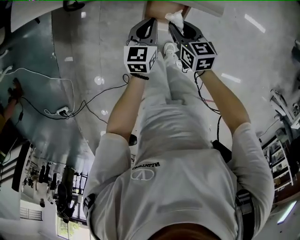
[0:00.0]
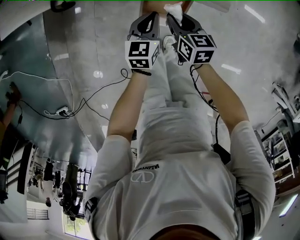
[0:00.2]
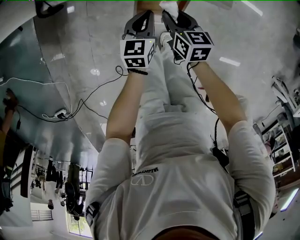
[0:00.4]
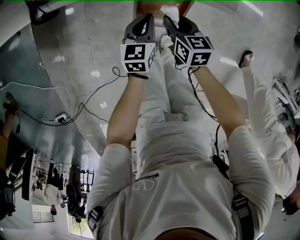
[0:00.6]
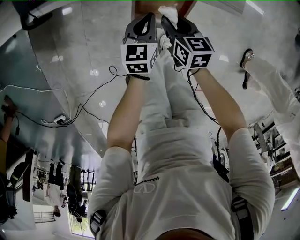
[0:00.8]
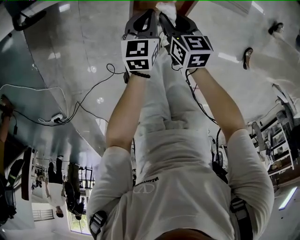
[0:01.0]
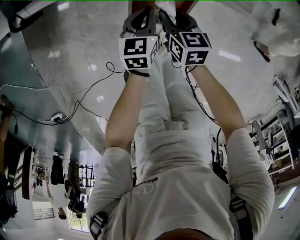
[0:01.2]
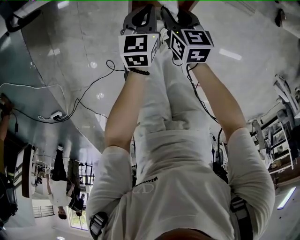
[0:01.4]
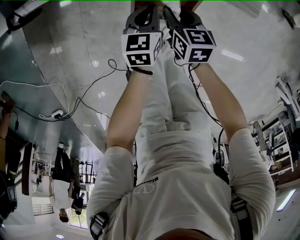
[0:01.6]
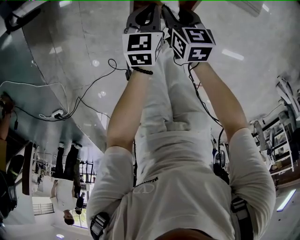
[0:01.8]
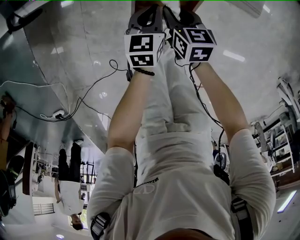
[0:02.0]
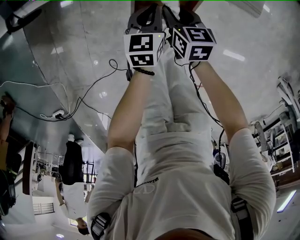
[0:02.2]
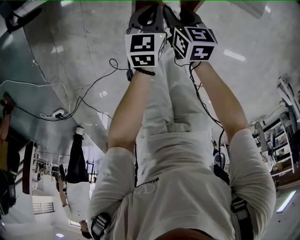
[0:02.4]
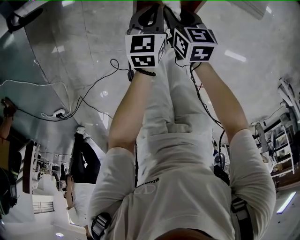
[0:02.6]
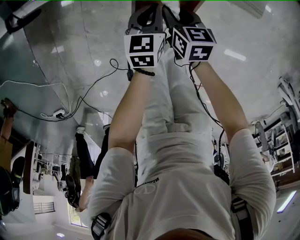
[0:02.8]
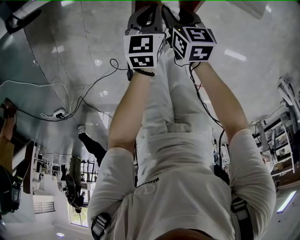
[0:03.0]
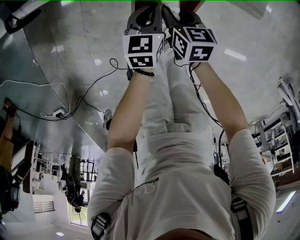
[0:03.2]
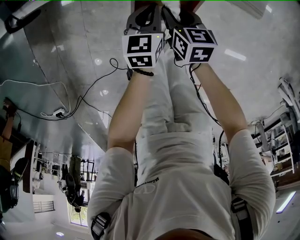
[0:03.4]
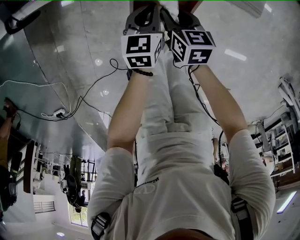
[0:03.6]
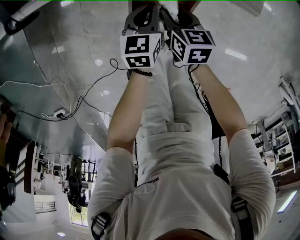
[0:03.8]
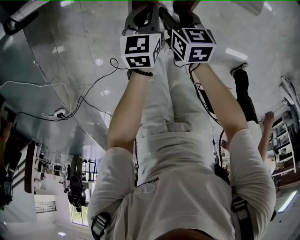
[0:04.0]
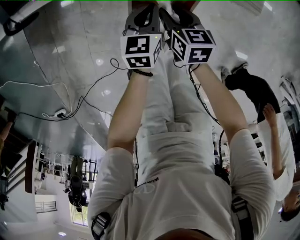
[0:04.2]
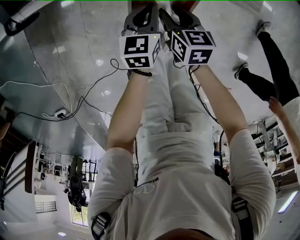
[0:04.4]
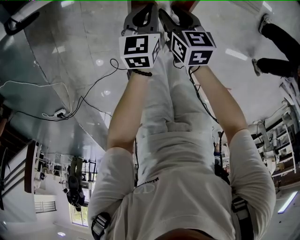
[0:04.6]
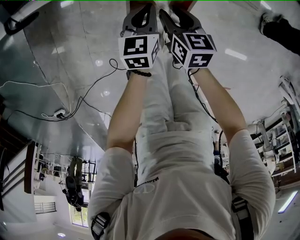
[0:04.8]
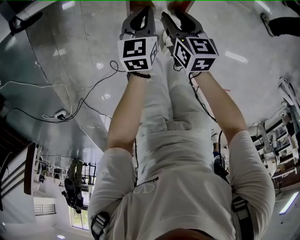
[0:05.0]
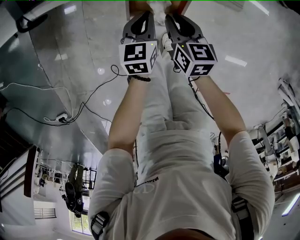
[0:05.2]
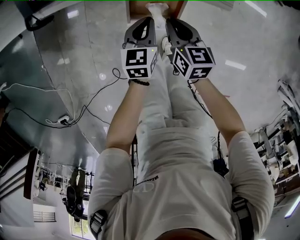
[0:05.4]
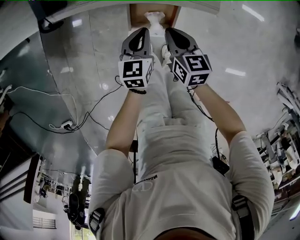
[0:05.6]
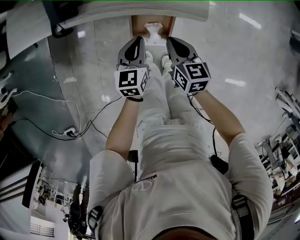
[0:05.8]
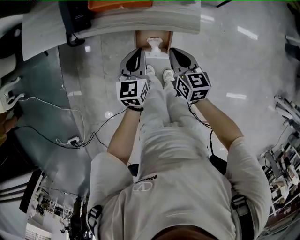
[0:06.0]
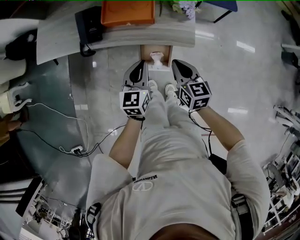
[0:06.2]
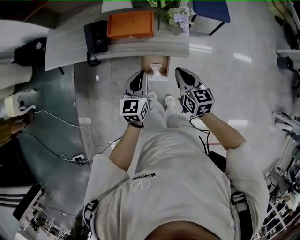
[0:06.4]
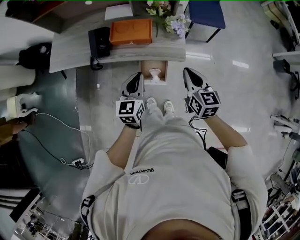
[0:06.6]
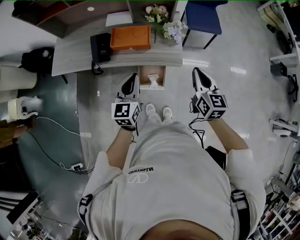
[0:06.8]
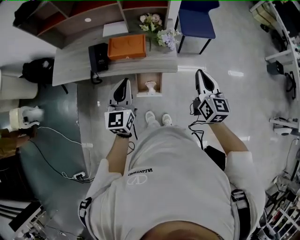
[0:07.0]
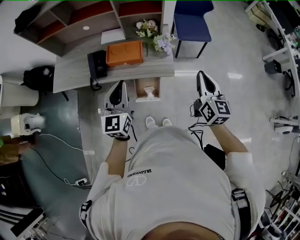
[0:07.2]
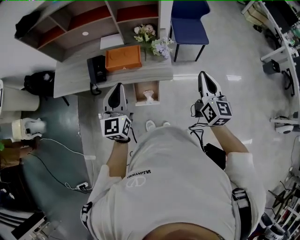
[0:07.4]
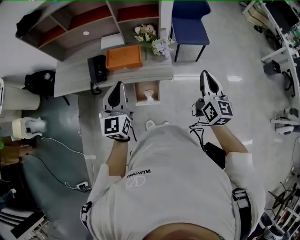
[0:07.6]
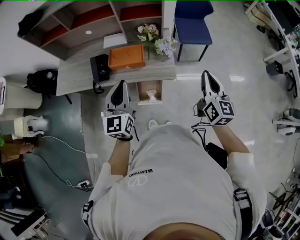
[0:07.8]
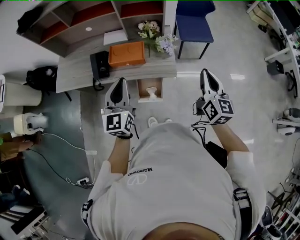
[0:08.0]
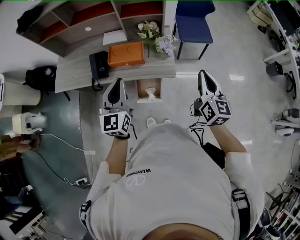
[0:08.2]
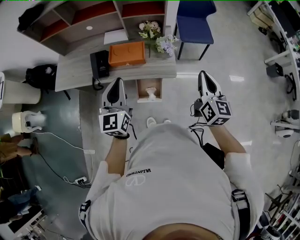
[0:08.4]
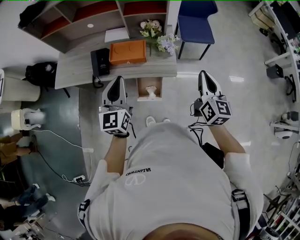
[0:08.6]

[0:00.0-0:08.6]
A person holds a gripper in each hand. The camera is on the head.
0:00.0 to 0:01.4: The grippers both shift downward by about 20 cm.
0:01.4 to 0:04.4: The grippers stay close to where they were, moving slightly.
0:04.4 to 0:05.8: The grippers both shift upward by approximately 20 cm. The right gripper closes.
0:05.8 to 0:07.2: The left gripper travels upward by about 40 cm, and swivels approximately 30 degrees, while the right gripper is displaced upward and to the right by roughly 40 cm, and rotates approximately 40 degrees.
0:07.2 to 0:08.6: The grippers make only small movements.

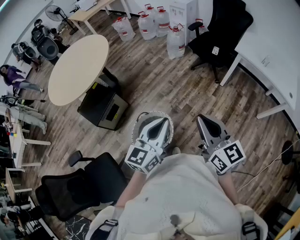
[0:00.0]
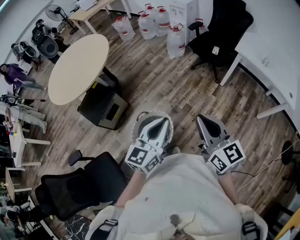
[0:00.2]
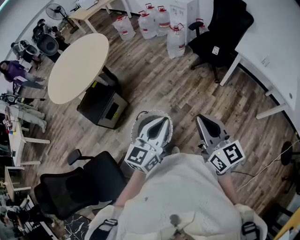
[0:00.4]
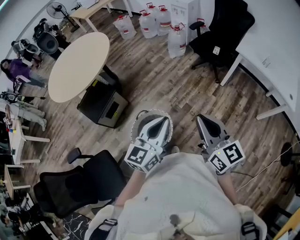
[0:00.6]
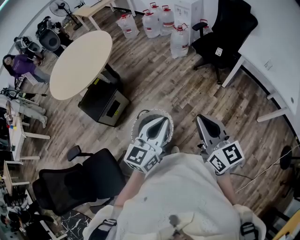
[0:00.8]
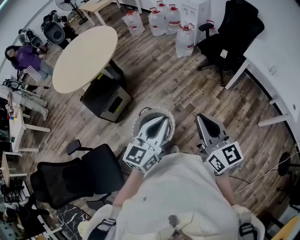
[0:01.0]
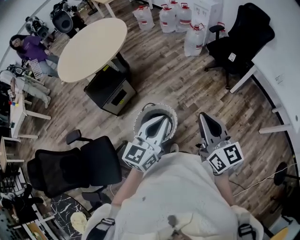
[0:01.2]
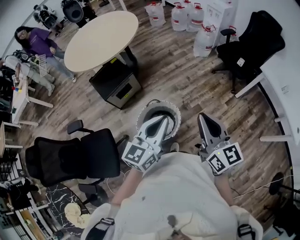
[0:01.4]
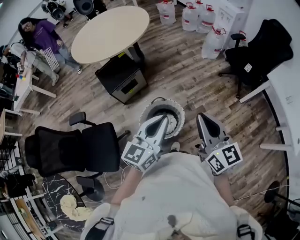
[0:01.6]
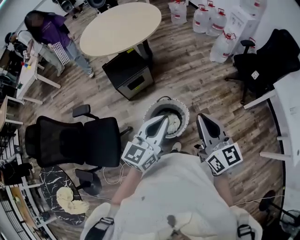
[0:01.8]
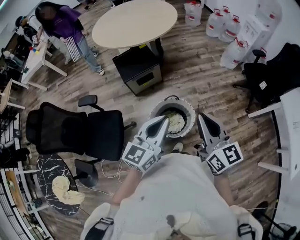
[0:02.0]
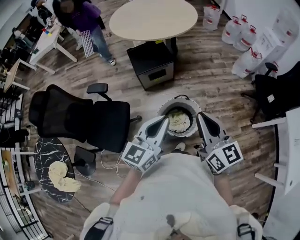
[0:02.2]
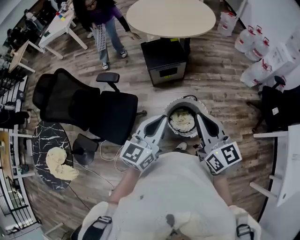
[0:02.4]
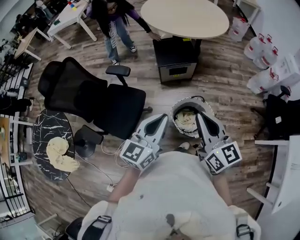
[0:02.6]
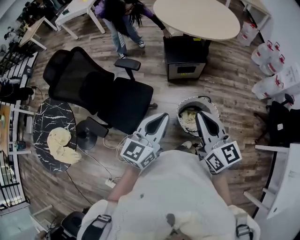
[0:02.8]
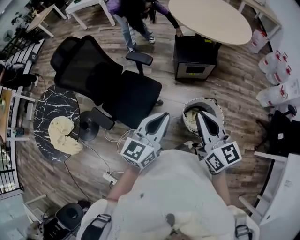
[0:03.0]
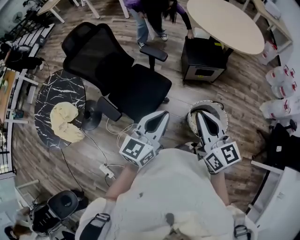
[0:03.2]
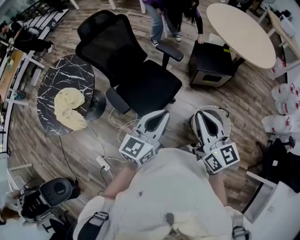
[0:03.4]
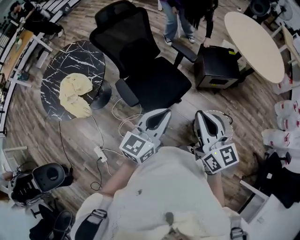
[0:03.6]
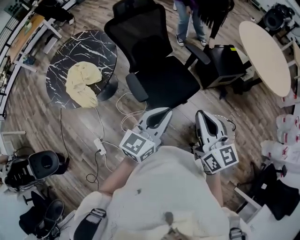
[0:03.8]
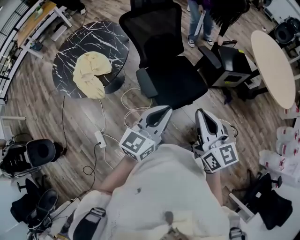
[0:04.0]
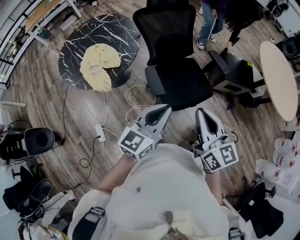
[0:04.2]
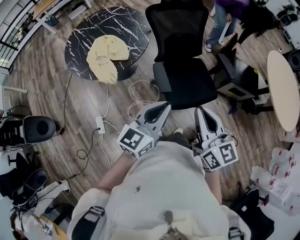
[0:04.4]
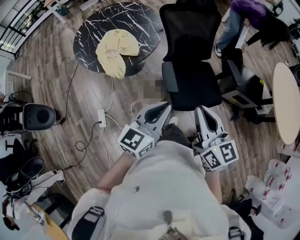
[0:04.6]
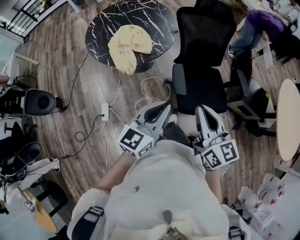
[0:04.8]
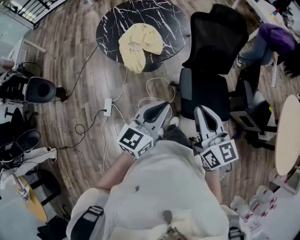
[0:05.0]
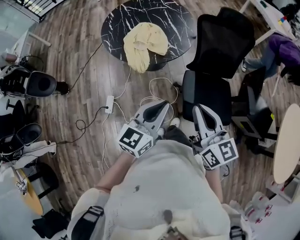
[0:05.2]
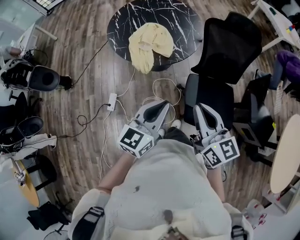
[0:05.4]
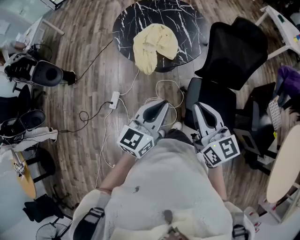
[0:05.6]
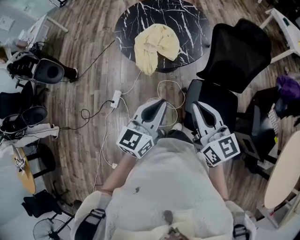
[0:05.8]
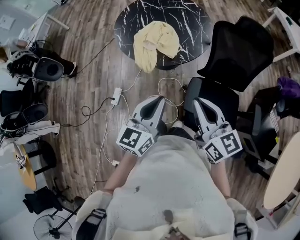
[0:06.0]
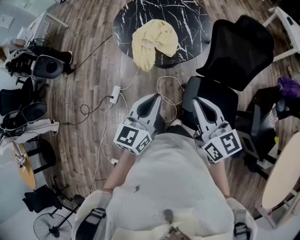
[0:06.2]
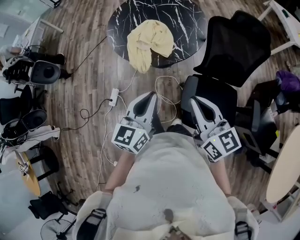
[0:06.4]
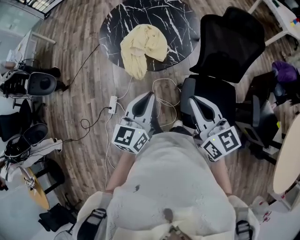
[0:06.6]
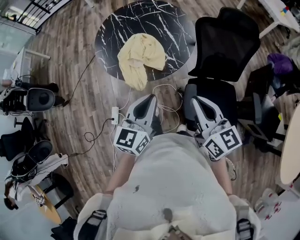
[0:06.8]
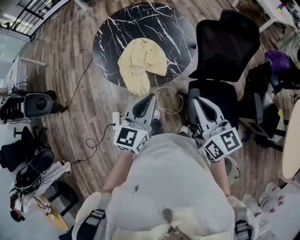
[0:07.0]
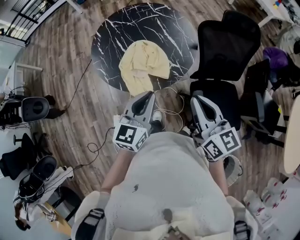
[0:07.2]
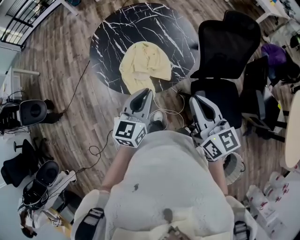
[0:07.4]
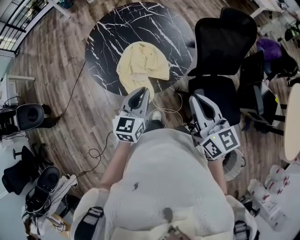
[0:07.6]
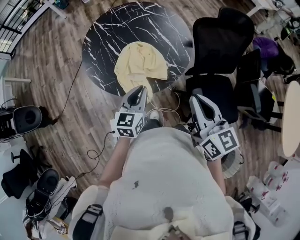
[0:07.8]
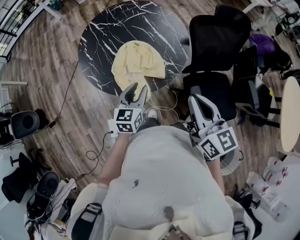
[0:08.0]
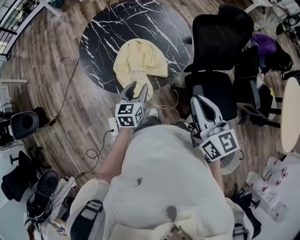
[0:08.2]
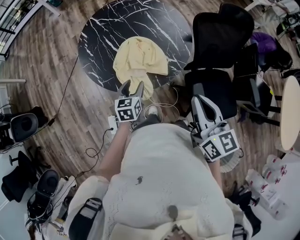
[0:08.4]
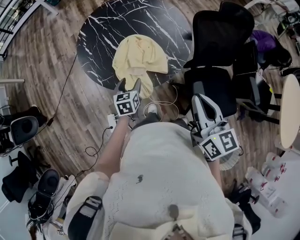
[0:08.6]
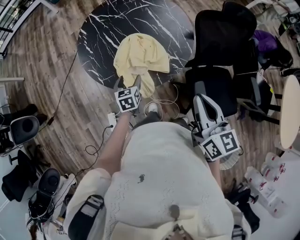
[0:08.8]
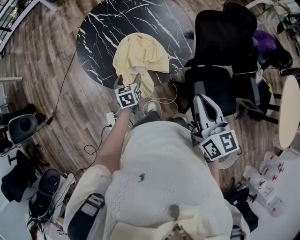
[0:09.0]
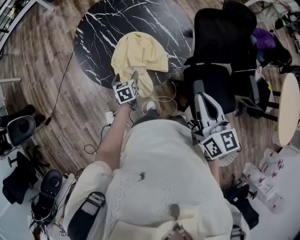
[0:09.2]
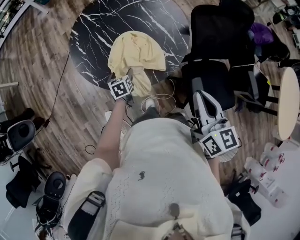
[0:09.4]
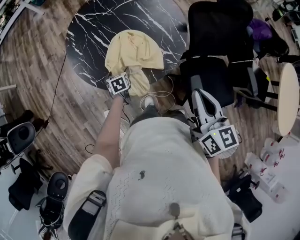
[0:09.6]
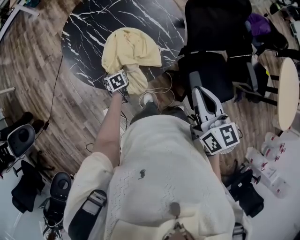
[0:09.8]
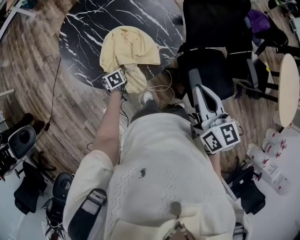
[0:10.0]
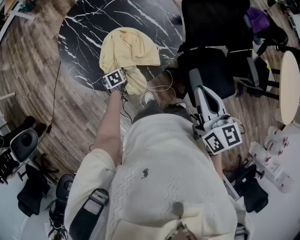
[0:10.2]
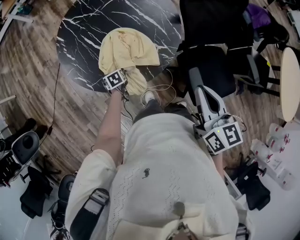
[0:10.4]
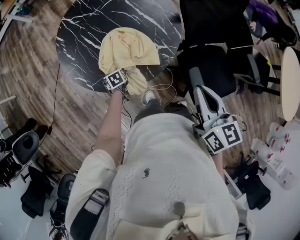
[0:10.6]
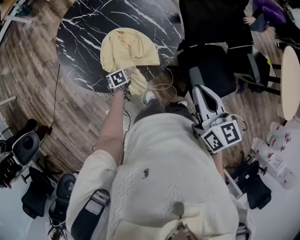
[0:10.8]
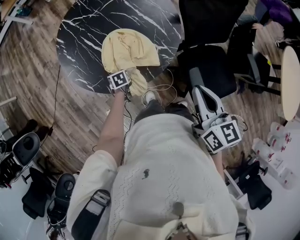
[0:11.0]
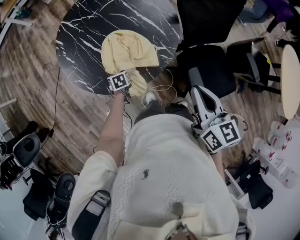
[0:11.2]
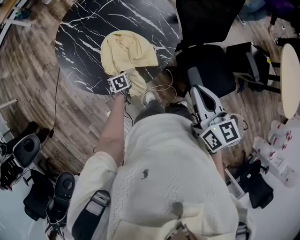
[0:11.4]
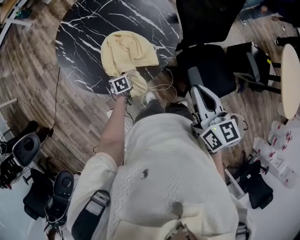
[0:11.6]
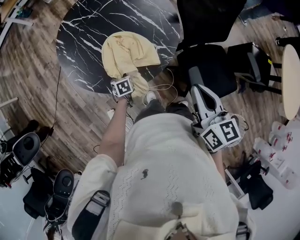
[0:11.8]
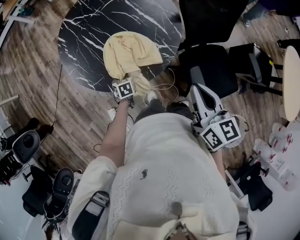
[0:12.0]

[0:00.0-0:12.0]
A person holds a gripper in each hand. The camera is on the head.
0:00.0 to 0:01.6: The two grippers go about 10 cm to the left.
0:01.6 to 0:03.0: Both grippers are carried roughly 50 cm. The right gripper rotates approximately 40 degrees. The left gripper rotates roughly 40 degrees.
0:03.0 to 0:04.4: The two grippers travel together, roughly 40 cm. The right gripper rotates about 40 degrees, while the left gripper changes its angle by approximately 40 degrees.
0:04.4 to 0:06.0: The left gripper shifts by some 15 cm, and rotates approximately 40 degrees, while the right gripper ends up approximately 20 cm from where it was, and rotates some 40 degrees.
0:06.0 to 0:07.6: The grippers both shift forward and to the left by approximately 30 cm. The right gripper rotates about 30 degrees.
0:07.6 to 0:09.0: The left gripper is displaced downward, to the left and forward by some 25 cm, rotates about 30 degrees, and opens up.
0:09.0 to 0:10.4: The left gripper is displaced downward and forward by roughly 15 cm, and rotates some 20 degrees; the right gripper shifts by some 5 cm.
0:10.4 to 0:12.0: The left gripper ends up approximately 5 cm from where it was, and closes.

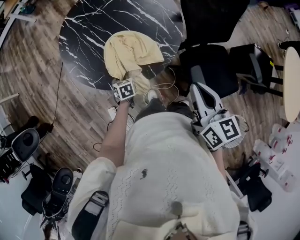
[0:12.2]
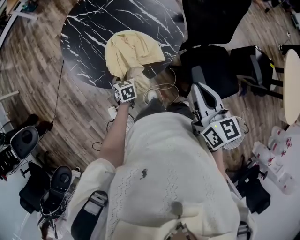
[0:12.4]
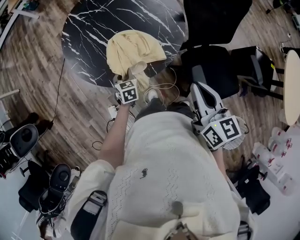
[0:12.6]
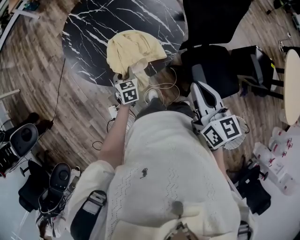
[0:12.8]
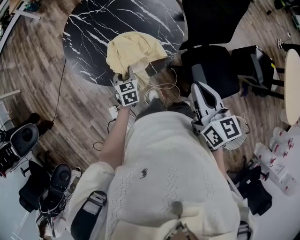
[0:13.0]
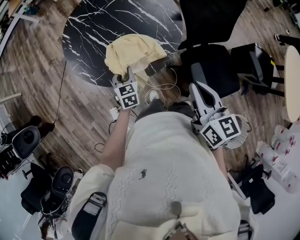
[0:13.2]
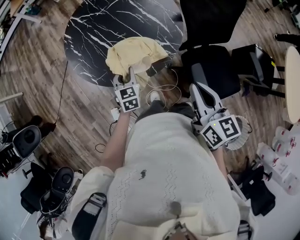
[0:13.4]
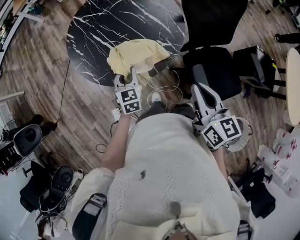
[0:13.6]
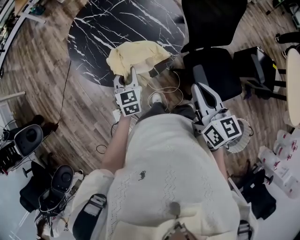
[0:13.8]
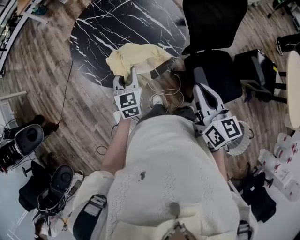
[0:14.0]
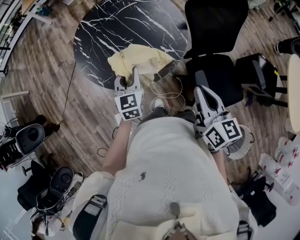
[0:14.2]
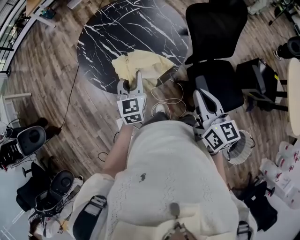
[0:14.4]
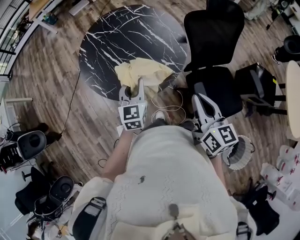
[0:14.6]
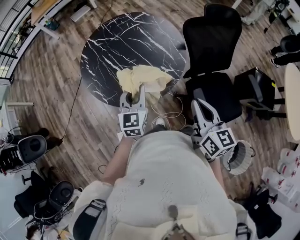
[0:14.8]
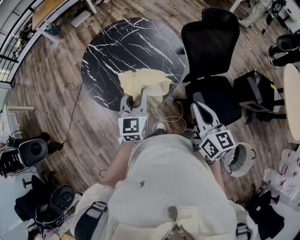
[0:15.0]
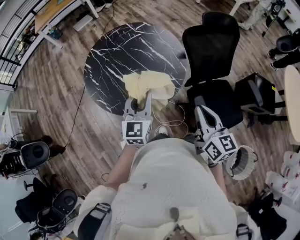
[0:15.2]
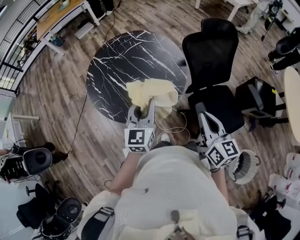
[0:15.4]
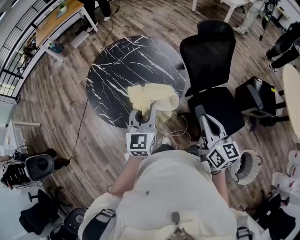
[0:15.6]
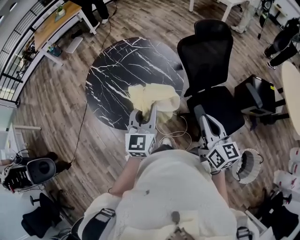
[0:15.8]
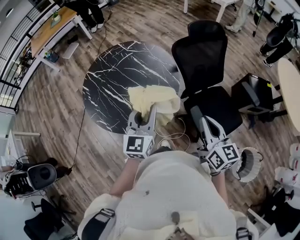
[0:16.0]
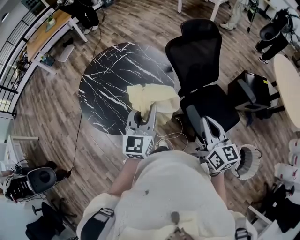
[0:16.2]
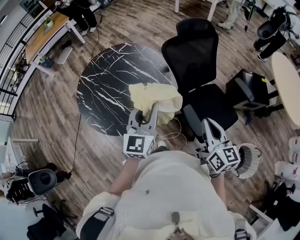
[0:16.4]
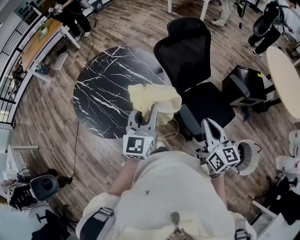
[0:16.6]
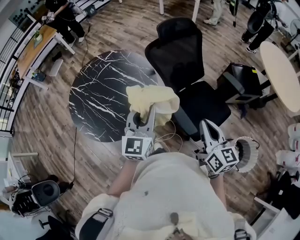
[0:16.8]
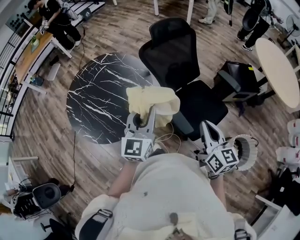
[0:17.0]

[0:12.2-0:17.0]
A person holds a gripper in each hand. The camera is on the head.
0:12.2 to 0:13.8: The right gripper heads backward, covering approximately 5 cm, while the left gripper shifts some 20 cm upward, and tilts its fingers some 30 degrees upward.
0:13.8 to 0:15.4: The left gripper moves upward, roughly 20 cm, and turns by about 20 degrees. Meanwhile the right gripper changes place by about 5 cm.
0:15.4 to 0:17.0: Both grippers travel together to the right, roughly 20 cm. The left gripper turns by roughly 20 degrees.
